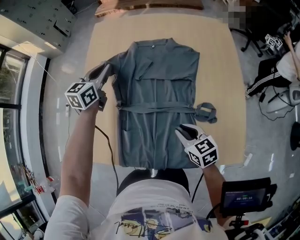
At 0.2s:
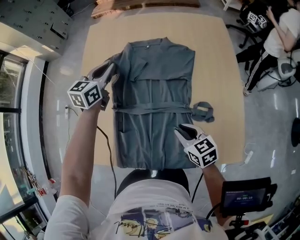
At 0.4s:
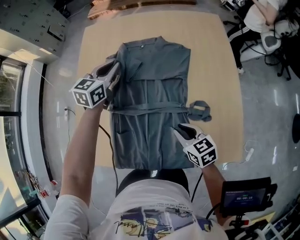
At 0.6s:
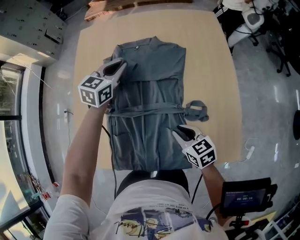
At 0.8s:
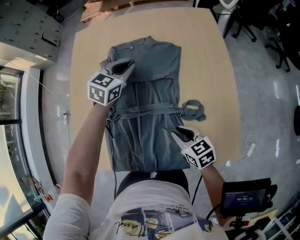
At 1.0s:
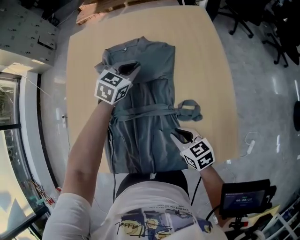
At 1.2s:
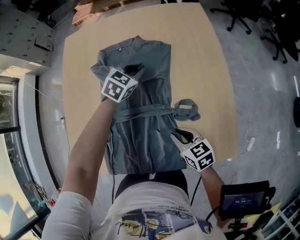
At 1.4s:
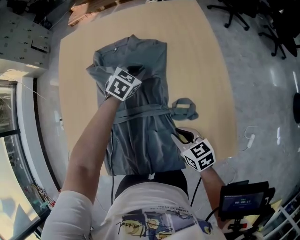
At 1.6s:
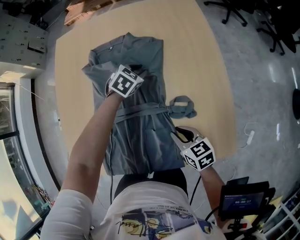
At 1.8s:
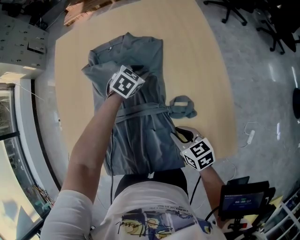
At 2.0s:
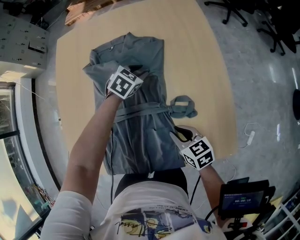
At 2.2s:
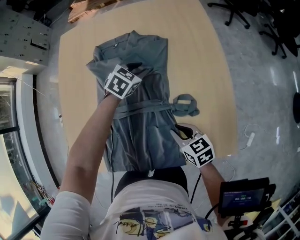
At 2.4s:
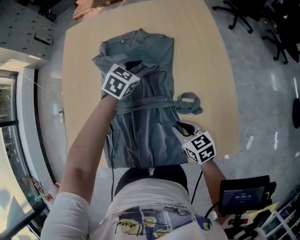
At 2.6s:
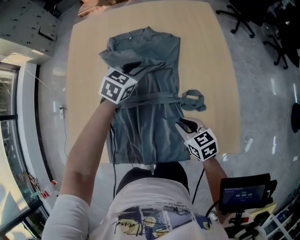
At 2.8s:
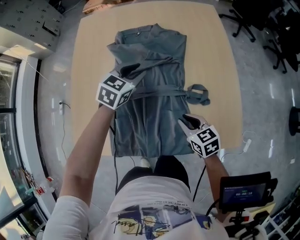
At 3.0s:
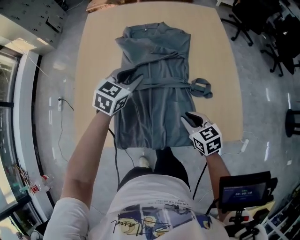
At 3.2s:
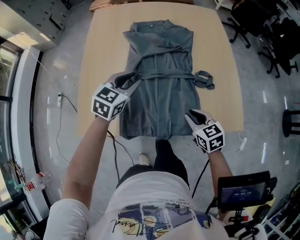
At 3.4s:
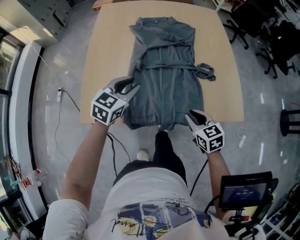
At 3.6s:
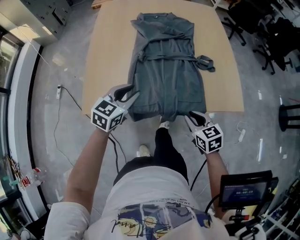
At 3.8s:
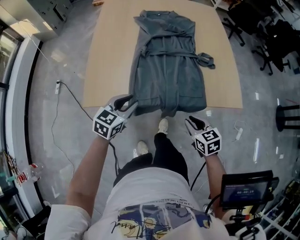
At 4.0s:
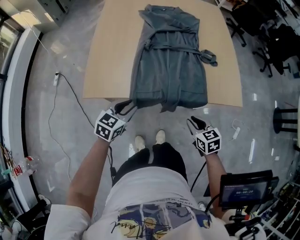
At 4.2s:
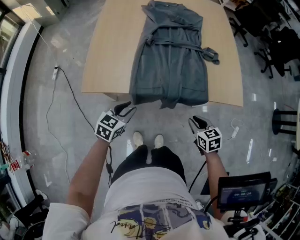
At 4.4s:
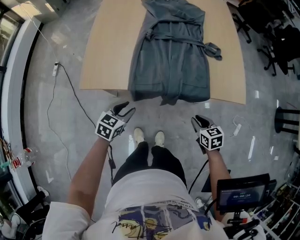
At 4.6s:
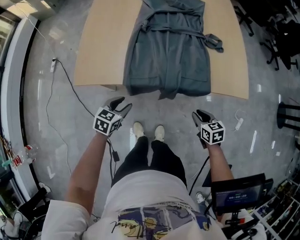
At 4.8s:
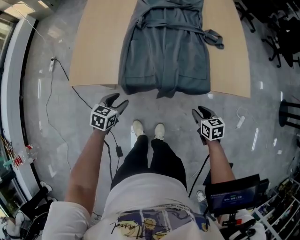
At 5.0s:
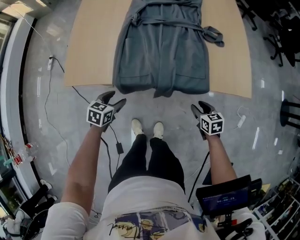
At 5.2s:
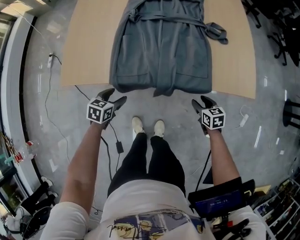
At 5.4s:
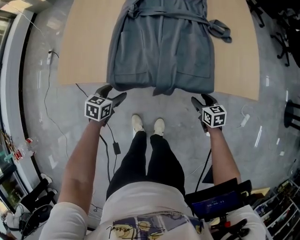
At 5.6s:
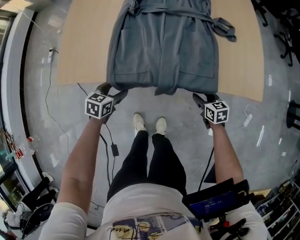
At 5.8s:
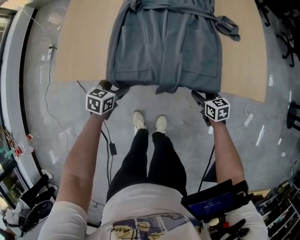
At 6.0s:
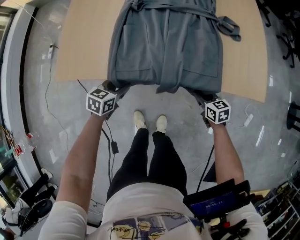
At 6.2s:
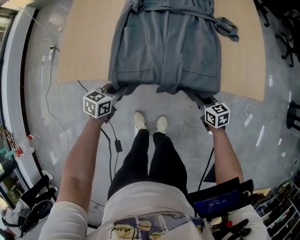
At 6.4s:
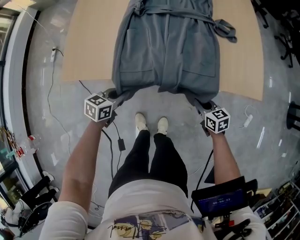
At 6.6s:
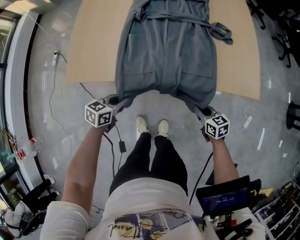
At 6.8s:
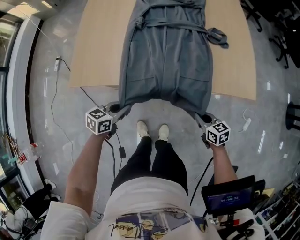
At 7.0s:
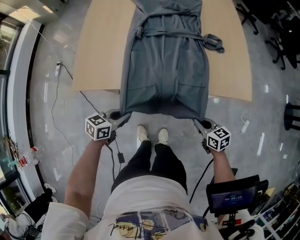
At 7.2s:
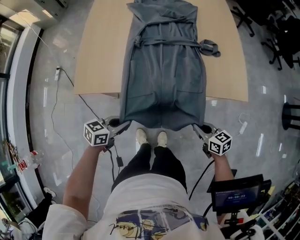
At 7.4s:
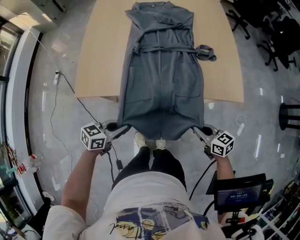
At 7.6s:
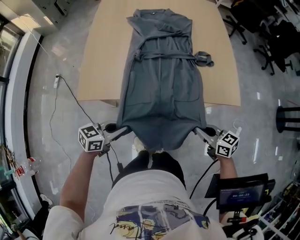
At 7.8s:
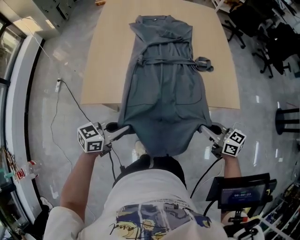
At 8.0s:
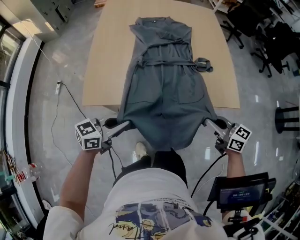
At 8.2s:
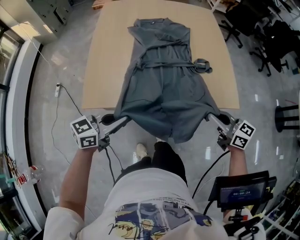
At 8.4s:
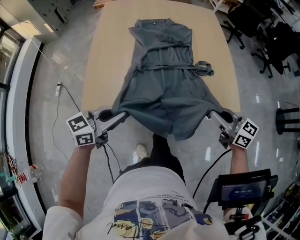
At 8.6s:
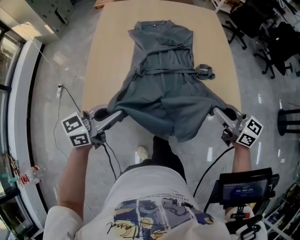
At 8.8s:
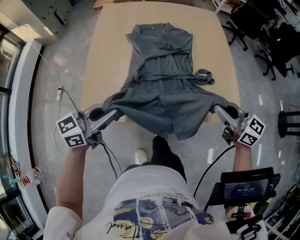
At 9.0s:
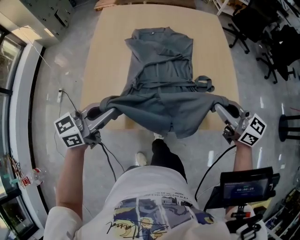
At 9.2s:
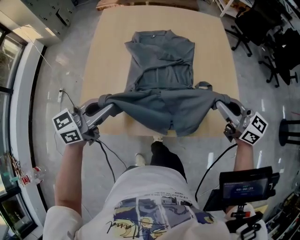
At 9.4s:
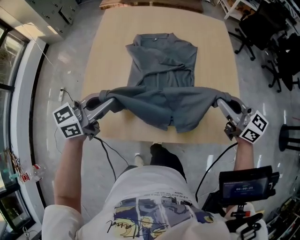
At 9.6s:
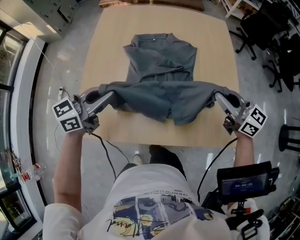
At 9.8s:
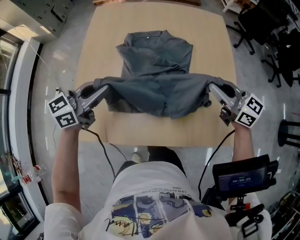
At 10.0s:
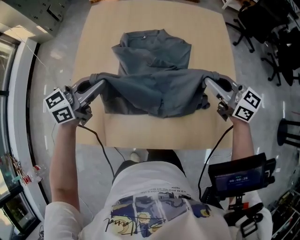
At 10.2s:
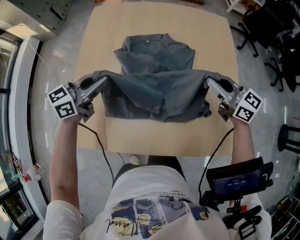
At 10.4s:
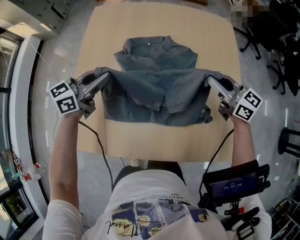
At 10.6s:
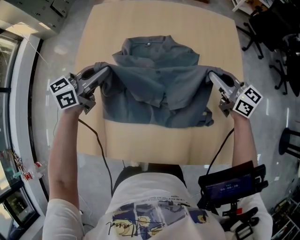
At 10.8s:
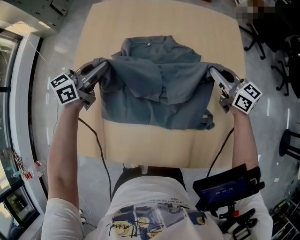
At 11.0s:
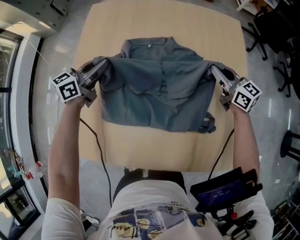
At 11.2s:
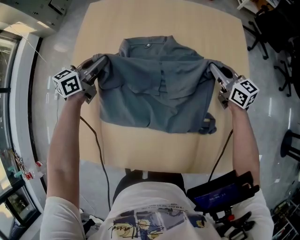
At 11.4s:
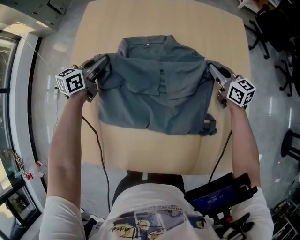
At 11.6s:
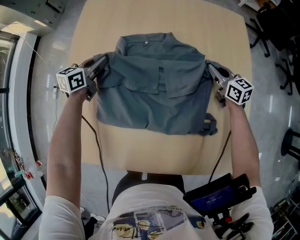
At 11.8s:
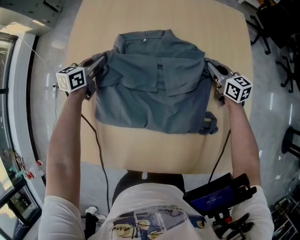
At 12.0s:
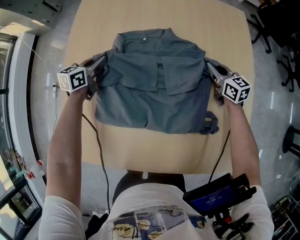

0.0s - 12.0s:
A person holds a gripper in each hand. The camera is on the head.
0.0s - 1.6s: The left gripper moves to the right and downward, approximately 35 cm, and points its fingers roughly 30 degrees further downward, while the right gripper is displaced to the right and downward by approximately 10 cm.
1.6s - 3.0s: The right gripper moves about 5 cm; the left gripper travels backward, to the left and upward by some 25 cm, and rotates some 30 degrees.
3.0s - 4.4s: The left gripper travels backward by about 40 cm. Meanwhile the right gripper is displaced backward by roughly 25 cm.
4.4s - 6.0s: The two grippers go about 15 cm downward and forward. The right gripper opens, then closes once more. The left gripper opens, then closes once more.
6.0s - 7.6s: The grippers both shift upward and backward by roughly 25 cm. The left gripper rotates some 30 degrees, and closes its fingers.
7.6s - 9.0s: Both grippers move forward and upward, approximately 30 cm. The right gripper turns by about 20 degrees, while the left gripper changes its angle by about 20 degrees.
9.0s - 10.4s: Both grippers travel together forward, roughly 25 cm.
10.4s - 12.0s: The grippers both shift downward and forward by roughly 25 cm. The right gripper swivels approximately 20 degrees. The left gripper turns by about 30 degrees.

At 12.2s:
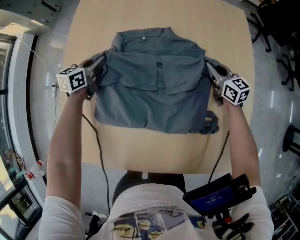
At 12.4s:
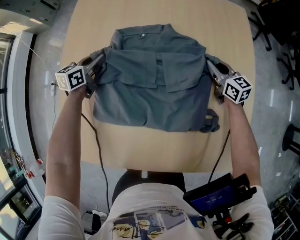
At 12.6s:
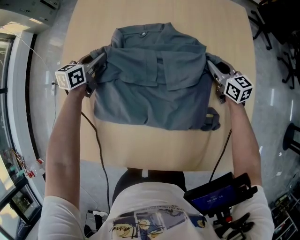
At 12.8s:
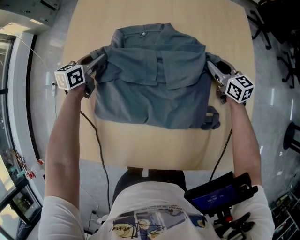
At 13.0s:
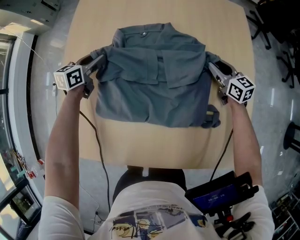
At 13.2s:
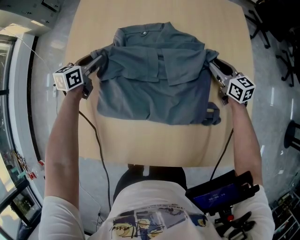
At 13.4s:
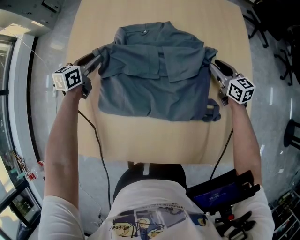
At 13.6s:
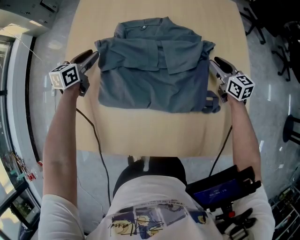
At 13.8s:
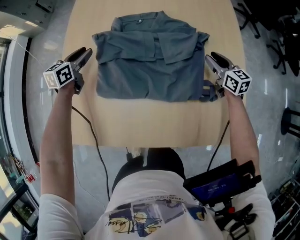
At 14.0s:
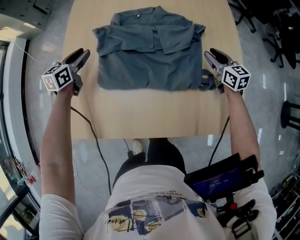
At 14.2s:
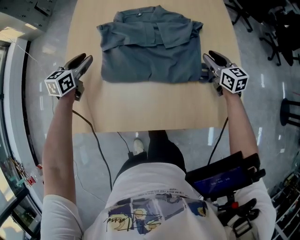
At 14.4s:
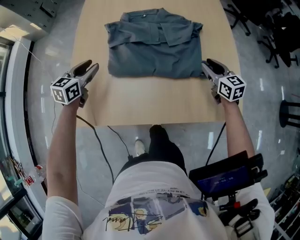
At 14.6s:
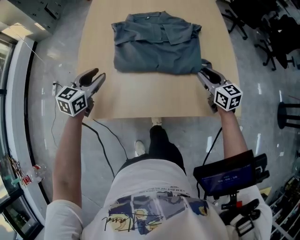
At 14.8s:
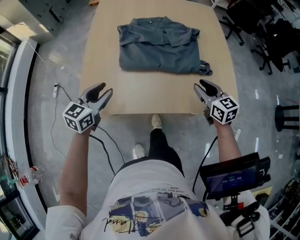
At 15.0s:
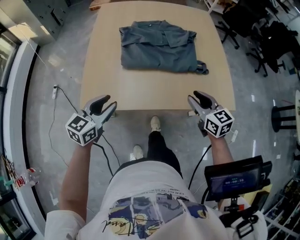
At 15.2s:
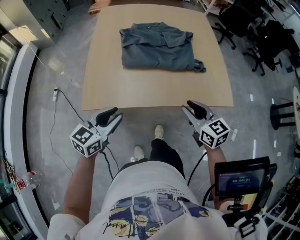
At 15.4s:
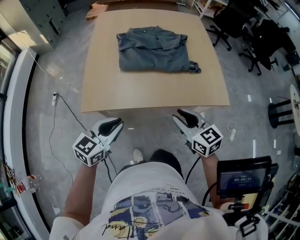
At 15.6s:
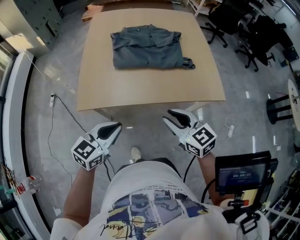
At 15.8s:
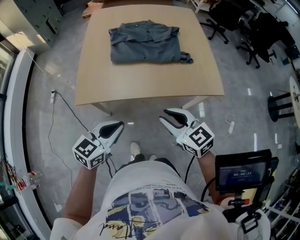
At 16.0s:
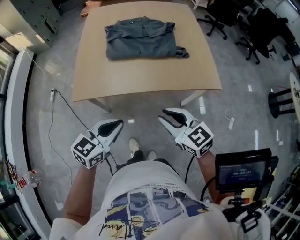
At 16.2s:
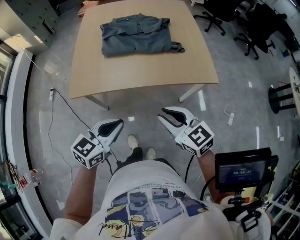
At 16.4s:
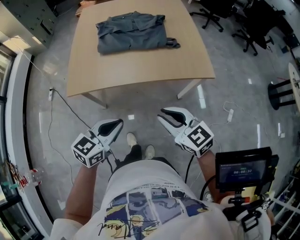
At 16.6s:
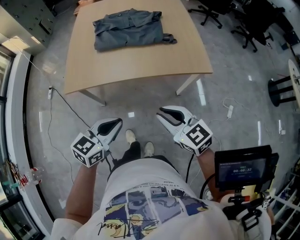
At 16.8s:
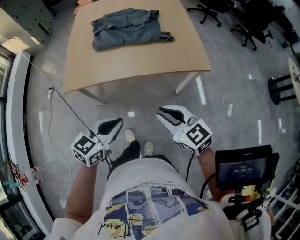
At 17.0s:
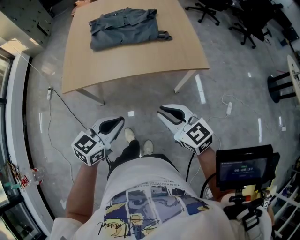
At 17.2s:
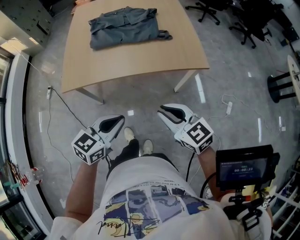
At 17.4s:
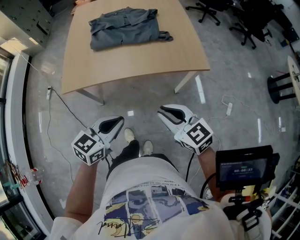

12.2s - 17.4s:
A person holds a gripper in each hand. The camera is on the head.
12.2s - 14.0s: The right gripper travels backward and upward by some 15 cm, and opens up. Meanwhile the left gripper goes about 15 cm backward, upward and to the left, and opens up.
14.0s - 15.6s: The two grippers travel together, backward, some 50 cm. The left gripper turns by roughly 30 degrees, and closes.
15.6s - 17.4s: The left gripper heads to the right and backward, covering about 15 cm, while the right gripper goes about 15 cm backward and to the right.

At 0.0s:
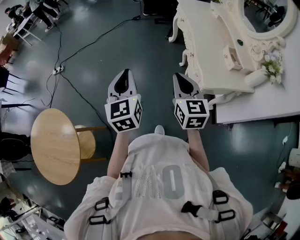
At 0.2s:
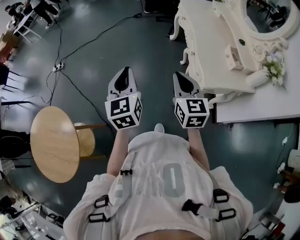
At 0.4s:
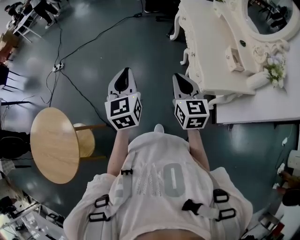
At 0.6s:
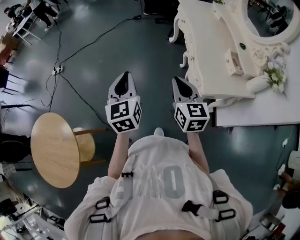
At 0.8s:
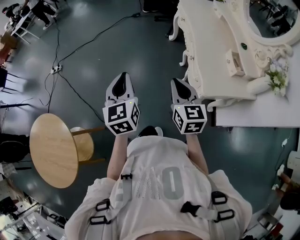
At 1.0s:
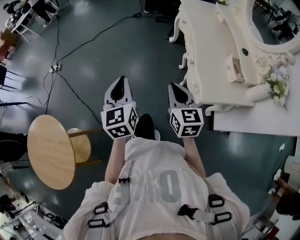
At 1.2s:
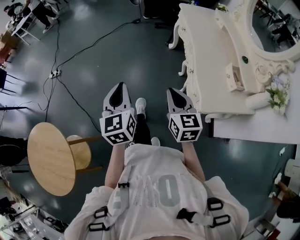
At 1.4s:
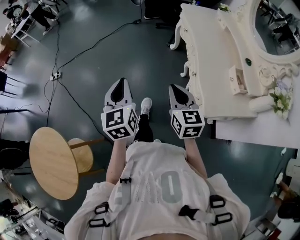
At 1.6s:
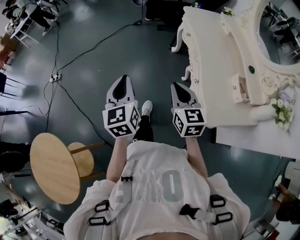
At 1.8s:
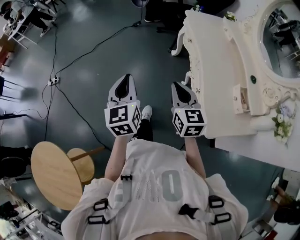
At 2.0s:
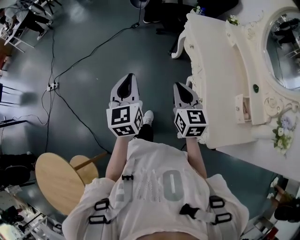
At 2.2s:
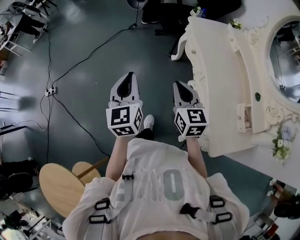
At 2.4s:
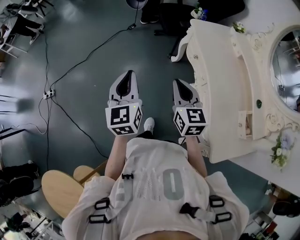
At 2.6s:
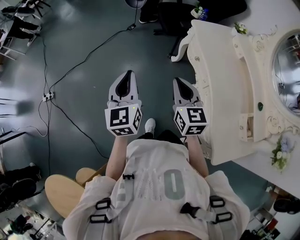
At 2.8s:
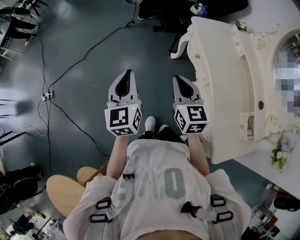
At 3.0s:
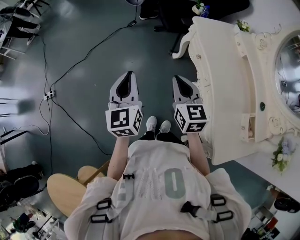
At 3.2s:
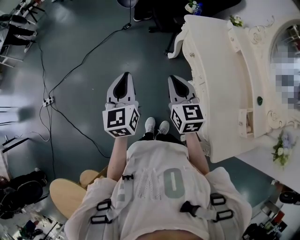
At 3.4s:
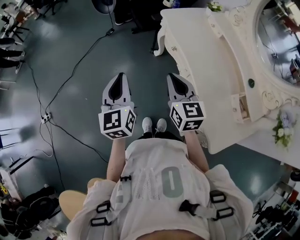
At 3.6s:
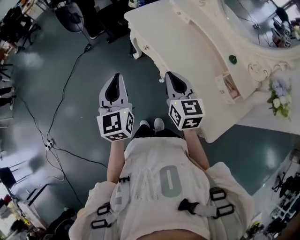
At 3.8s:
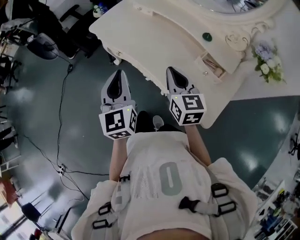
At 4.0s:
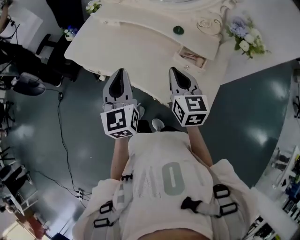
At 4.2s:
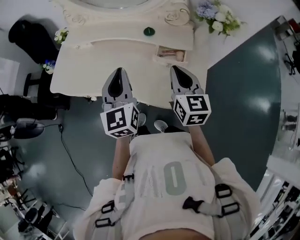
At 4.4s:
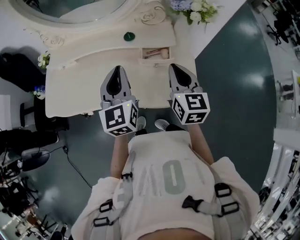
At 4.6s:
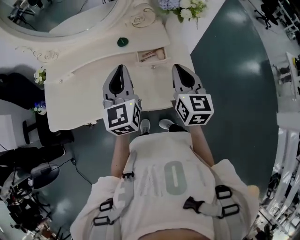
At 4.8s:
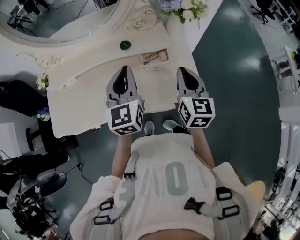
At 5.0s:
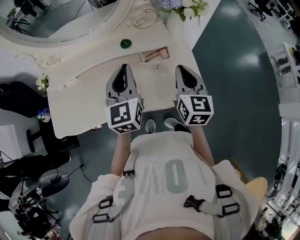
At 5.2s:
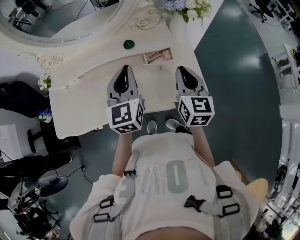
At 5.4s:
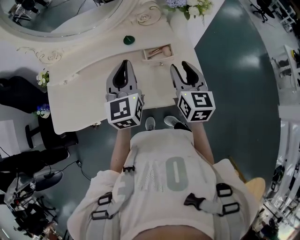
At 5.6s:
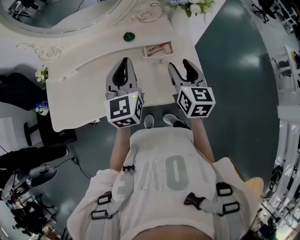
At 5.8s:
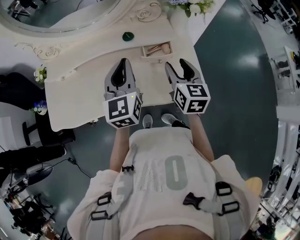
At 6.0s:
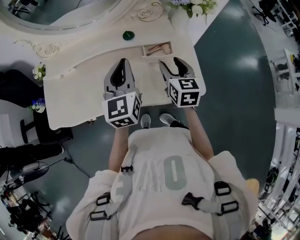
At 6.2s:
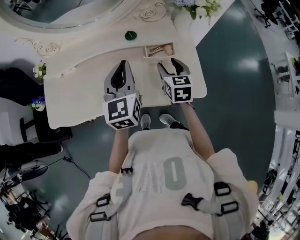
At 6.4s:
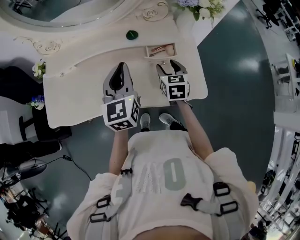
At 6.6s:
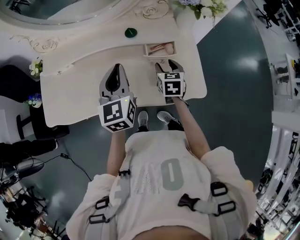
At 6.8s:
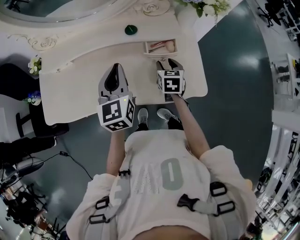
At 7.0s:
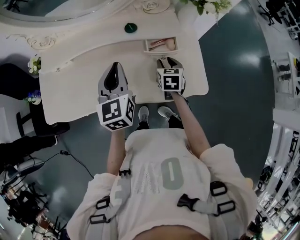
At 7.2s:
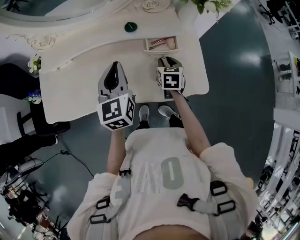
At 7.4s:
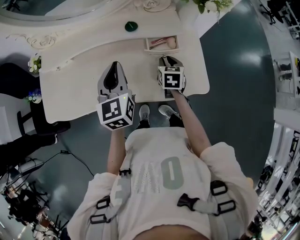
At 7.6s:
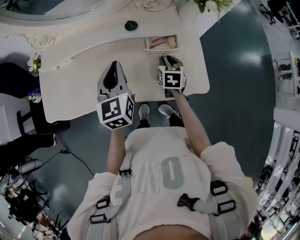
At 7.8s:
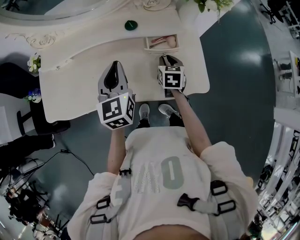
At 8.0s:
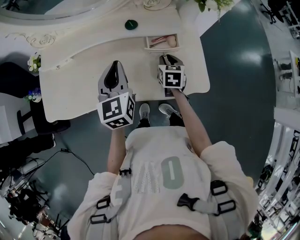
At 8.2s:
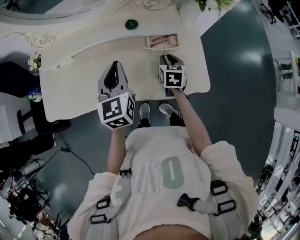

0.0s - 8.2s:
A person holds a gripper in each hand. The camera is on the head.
0.0s - 1.6s: Both grippers move forward, approximately 20 cm.
1.6s - 3.2s: Both grippers move forward, approximately 30 cm.
3.2s - 5.0s: The two grippers travel together, about 50 cm. The right gripper rotates about 100 degrees, while the left gripper rotates about 90 degrees.
5.0s - 6.6s: The left gripper travels to the left by approximately 5 cm, while the right gripper travels downward and forward by some 20 cm, rotates approximately 30 degrees, and opens up.
6.6s - 8.2s: The right gripper closes up.
